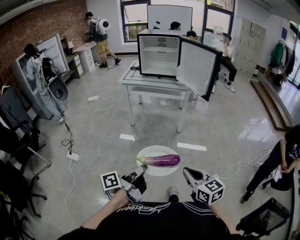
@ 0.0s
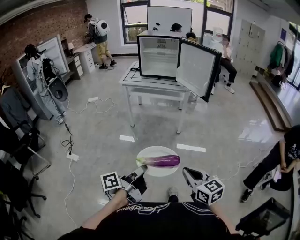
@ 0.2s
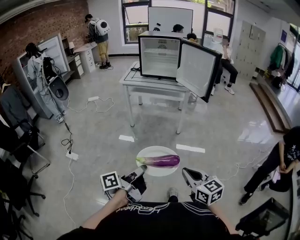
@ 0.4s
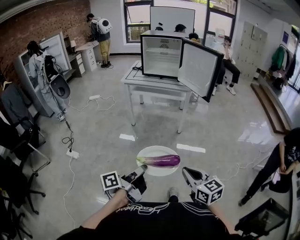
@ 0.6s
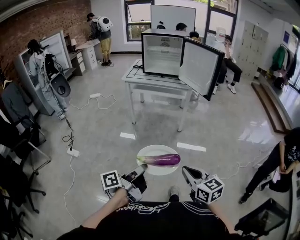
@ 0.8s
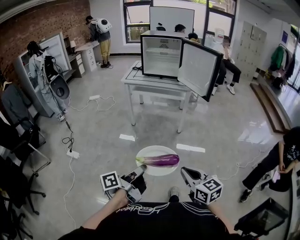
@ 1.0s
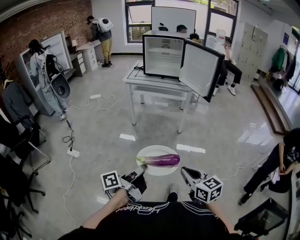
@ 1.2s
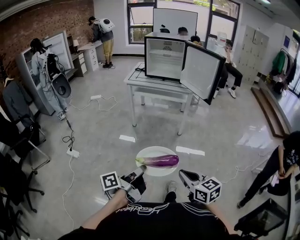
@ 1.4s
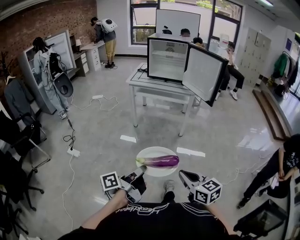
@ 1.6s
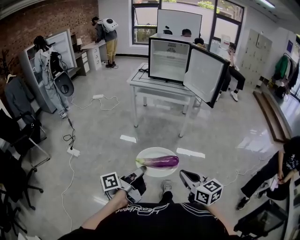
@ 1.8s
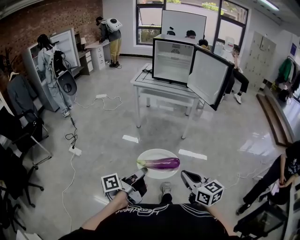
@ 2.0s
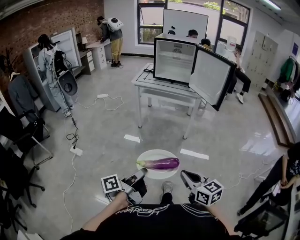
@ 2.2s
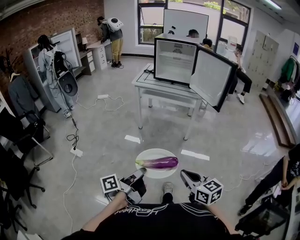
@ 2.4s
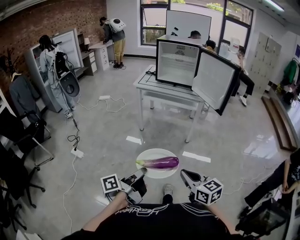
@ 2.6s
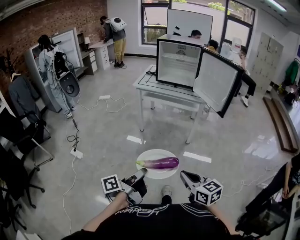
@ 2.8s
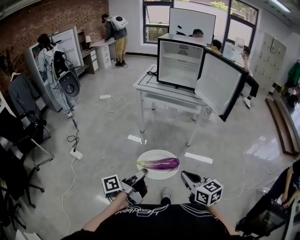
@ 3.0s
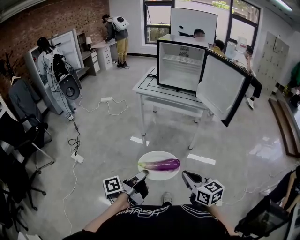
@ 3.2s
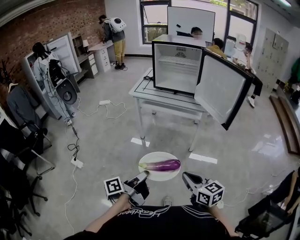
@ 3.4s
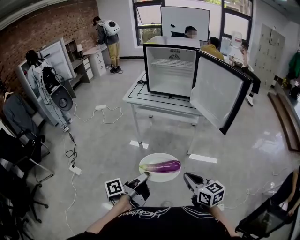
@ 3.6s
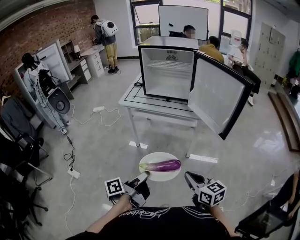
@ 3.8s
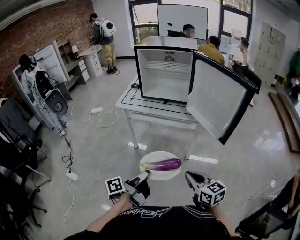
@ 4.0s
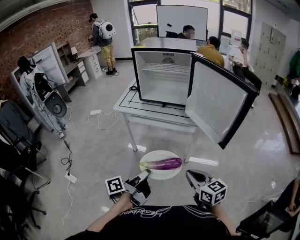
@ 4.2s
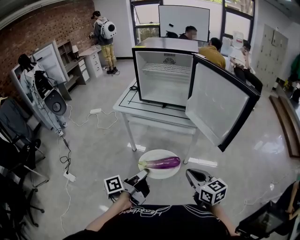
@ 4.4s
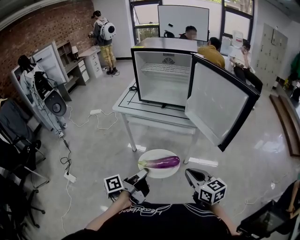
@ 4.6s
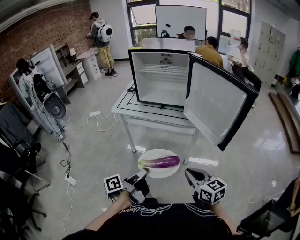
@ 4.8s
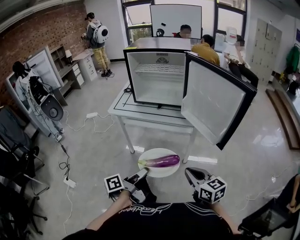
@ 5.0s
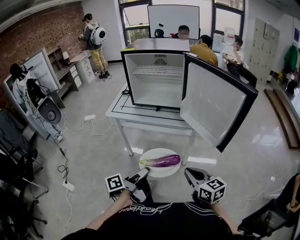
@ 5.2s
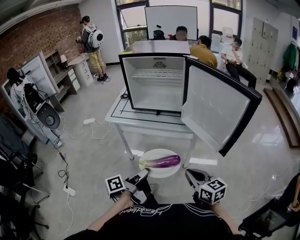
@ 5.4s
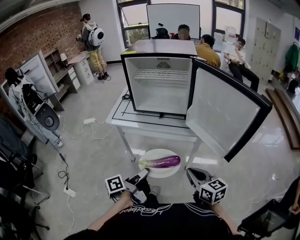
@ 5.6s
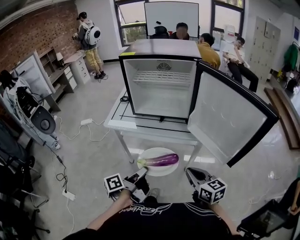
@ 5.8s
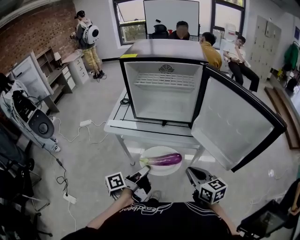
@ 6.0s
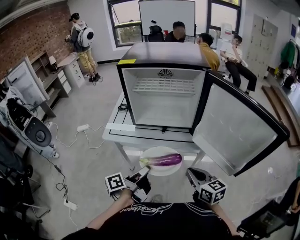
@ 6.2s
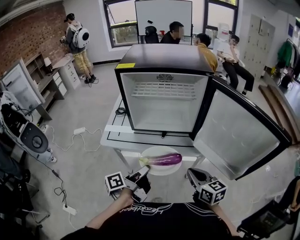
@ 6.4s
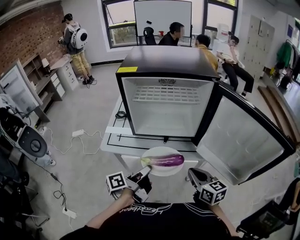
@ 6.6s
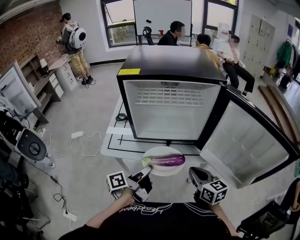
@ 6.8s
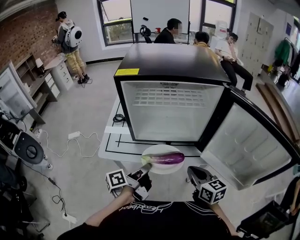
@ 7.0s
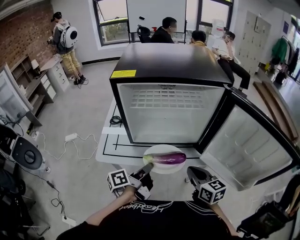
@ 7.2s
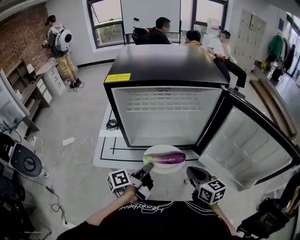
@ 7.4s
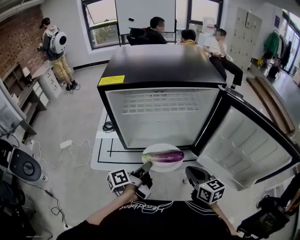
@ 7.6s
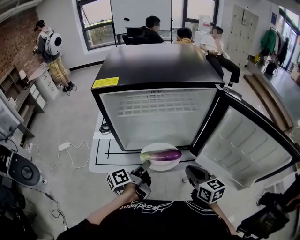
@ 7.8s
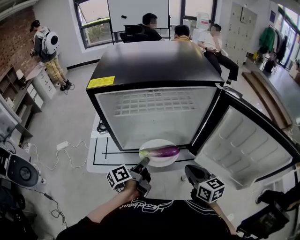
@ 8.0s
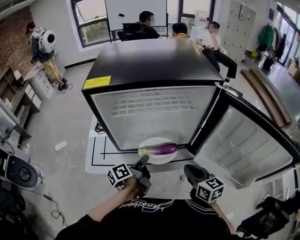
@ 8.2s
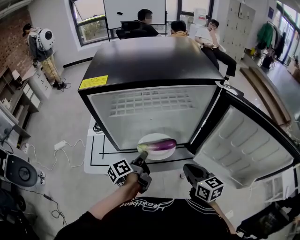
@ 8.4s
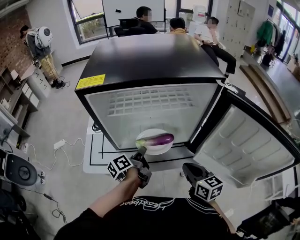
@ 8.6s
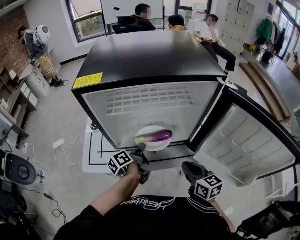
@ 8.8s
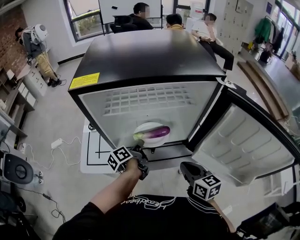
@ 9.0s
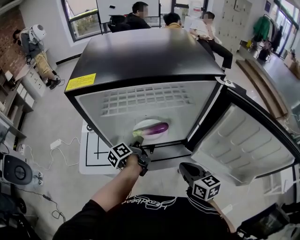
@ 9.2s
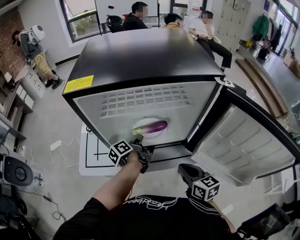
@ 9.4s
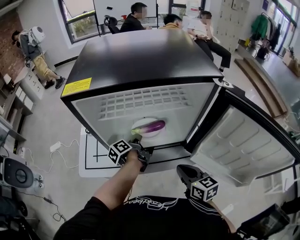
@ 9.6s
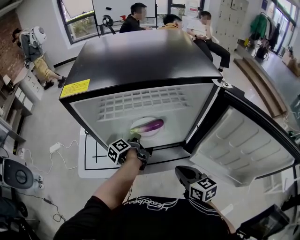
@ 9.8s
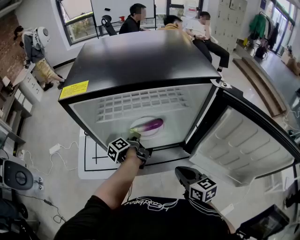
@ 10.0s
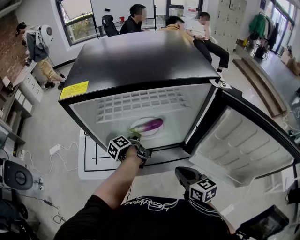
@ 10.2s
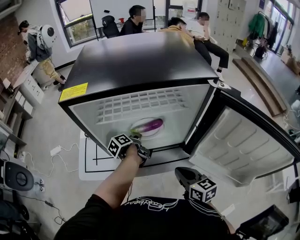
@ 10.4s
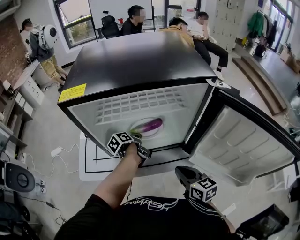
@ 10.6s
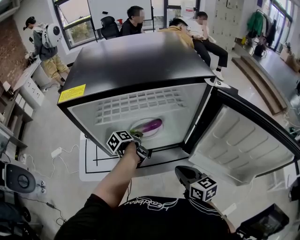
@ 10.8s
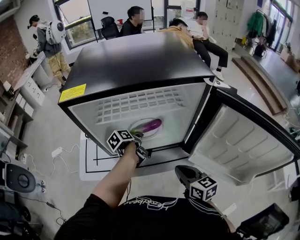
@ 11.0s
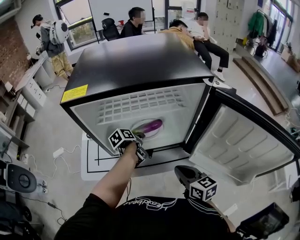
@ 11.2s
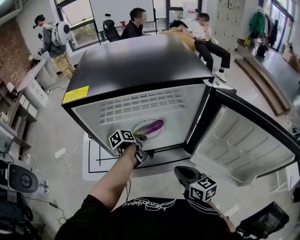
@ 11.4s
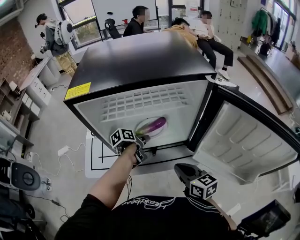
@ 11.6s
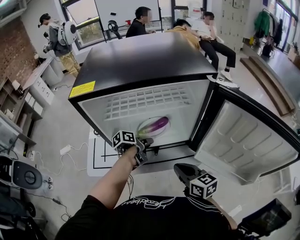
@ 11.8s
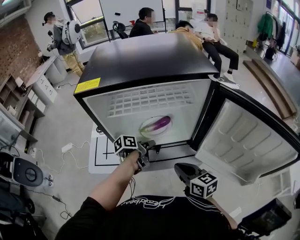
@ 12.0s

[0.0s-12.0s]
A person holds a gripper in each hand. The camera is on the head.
0.0s to 1.6s: The right gripper shifts by some 5 cm.
1.6s to 3.0s: The right gripper moves approximately 15 cm.
3.0s to 4.4s: The right gripper changes place by approximately 35 cm.
4.4s to 6.0s: The right gripper moves approximately 20 cm.
6.0s to 7.6s: The right gripper ends up some 20 cm from where it was.

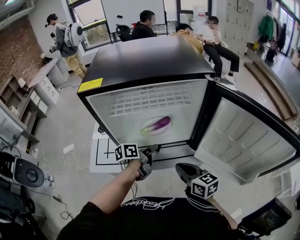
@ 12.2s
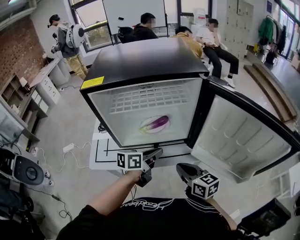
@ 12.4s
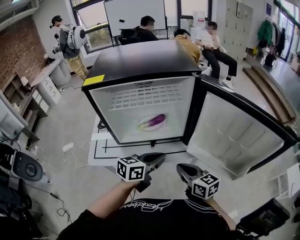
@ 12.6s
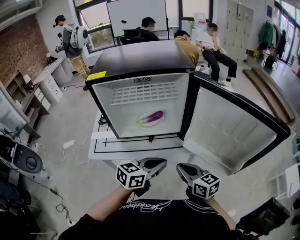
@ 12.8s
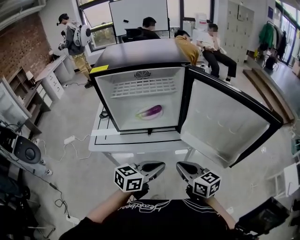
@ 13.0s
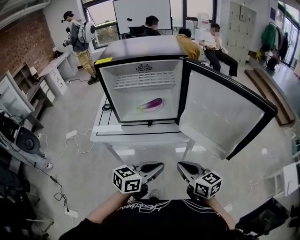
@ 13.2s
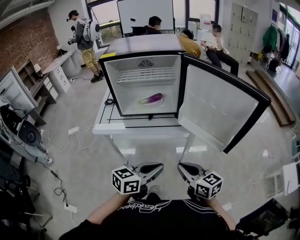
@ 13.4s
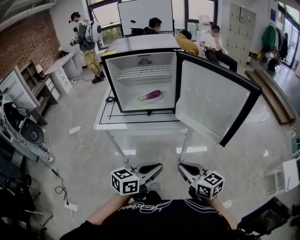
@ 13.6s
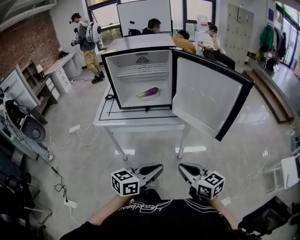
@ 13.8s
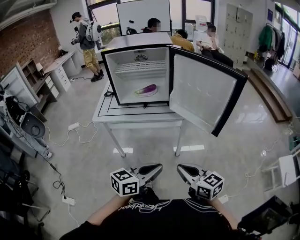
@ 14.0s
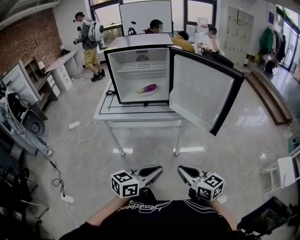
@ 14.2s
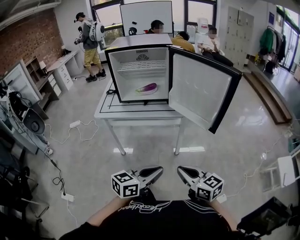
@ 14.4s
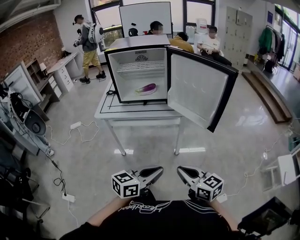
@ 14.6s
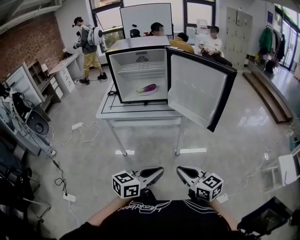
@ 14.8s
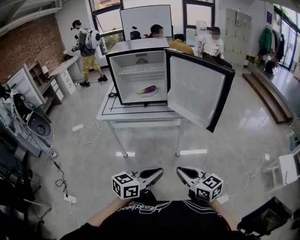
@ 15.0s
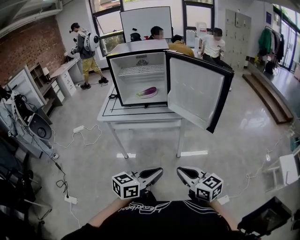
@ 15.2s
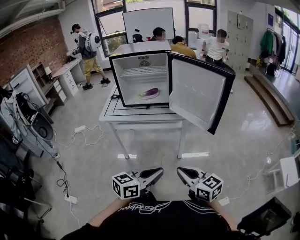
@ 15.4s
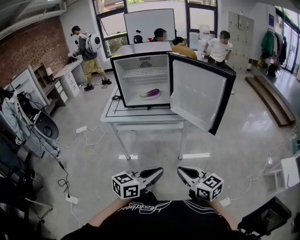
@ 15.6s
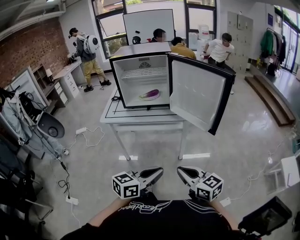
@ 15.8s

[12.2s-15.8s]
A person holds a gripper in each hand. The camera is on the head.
12.2s to 14.0s: The right gripper changes place by approximately 40 cm.
14.0s to 15.8s: The right gripper changes place by some 5 cm.

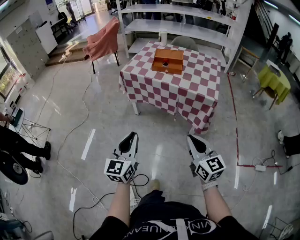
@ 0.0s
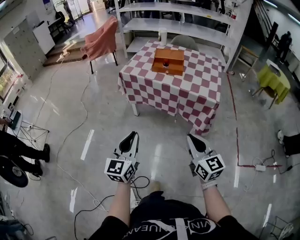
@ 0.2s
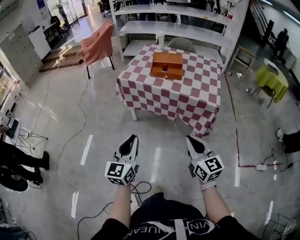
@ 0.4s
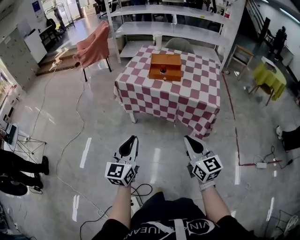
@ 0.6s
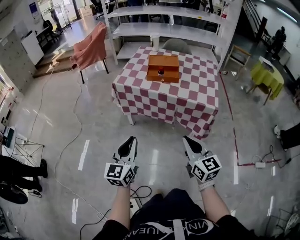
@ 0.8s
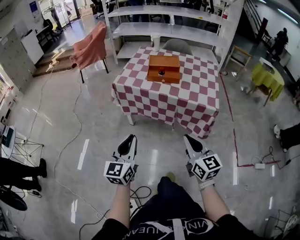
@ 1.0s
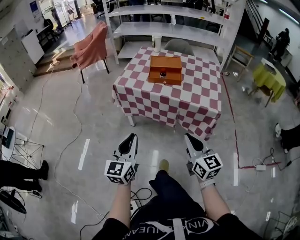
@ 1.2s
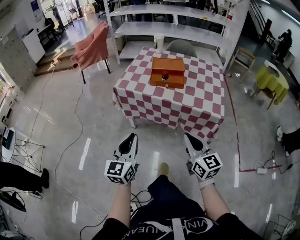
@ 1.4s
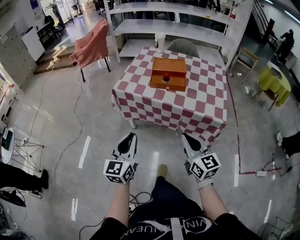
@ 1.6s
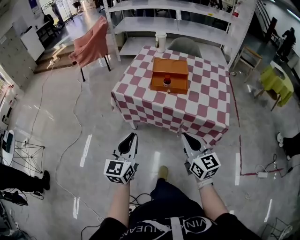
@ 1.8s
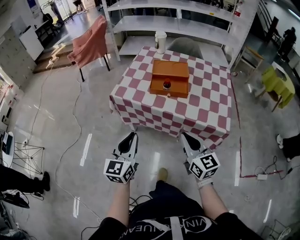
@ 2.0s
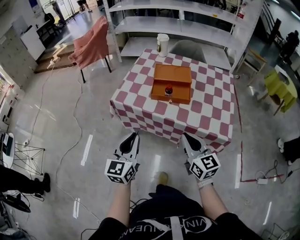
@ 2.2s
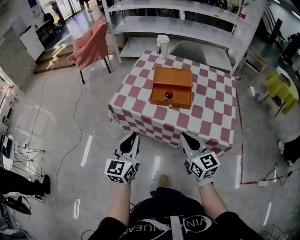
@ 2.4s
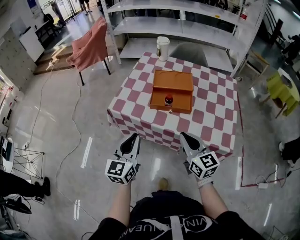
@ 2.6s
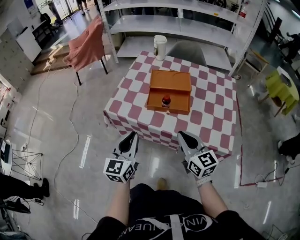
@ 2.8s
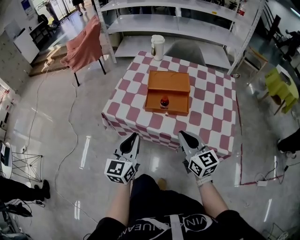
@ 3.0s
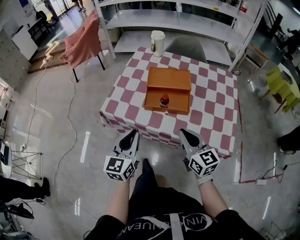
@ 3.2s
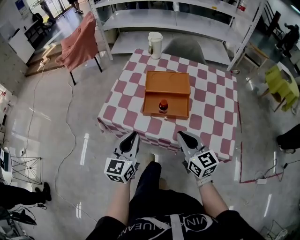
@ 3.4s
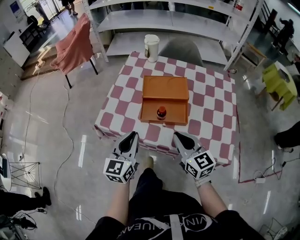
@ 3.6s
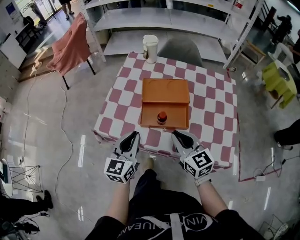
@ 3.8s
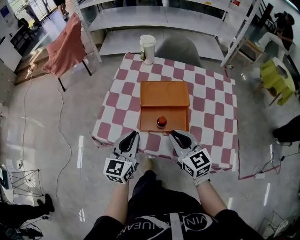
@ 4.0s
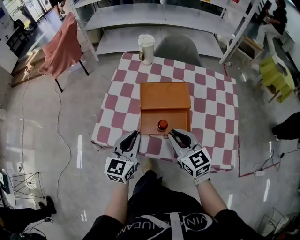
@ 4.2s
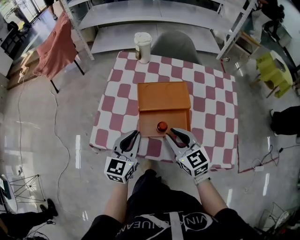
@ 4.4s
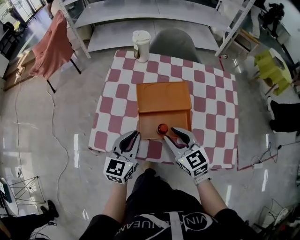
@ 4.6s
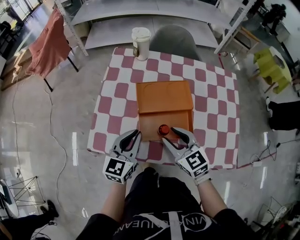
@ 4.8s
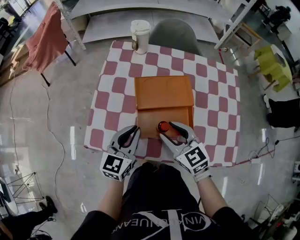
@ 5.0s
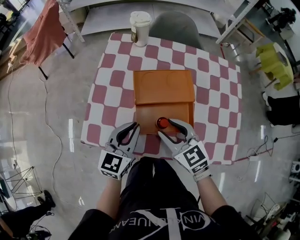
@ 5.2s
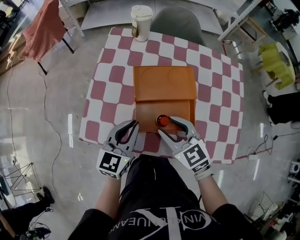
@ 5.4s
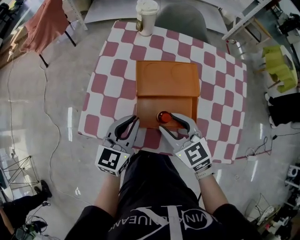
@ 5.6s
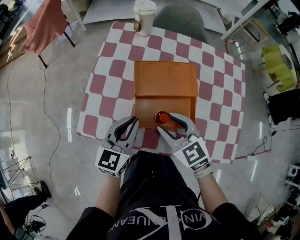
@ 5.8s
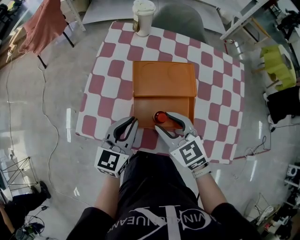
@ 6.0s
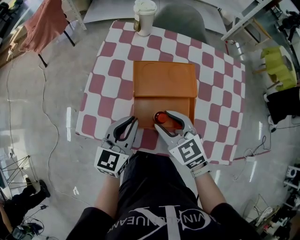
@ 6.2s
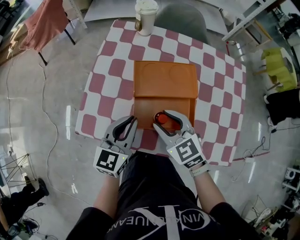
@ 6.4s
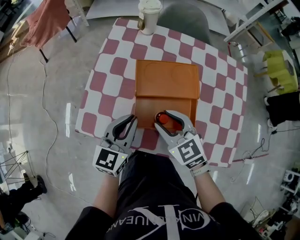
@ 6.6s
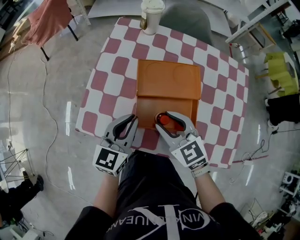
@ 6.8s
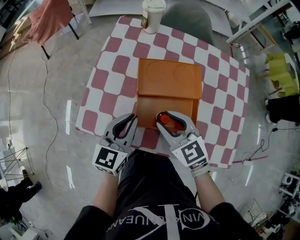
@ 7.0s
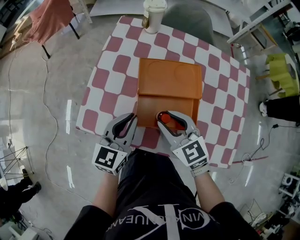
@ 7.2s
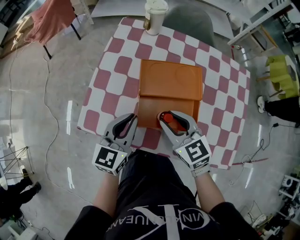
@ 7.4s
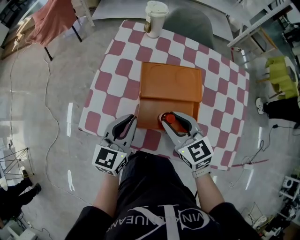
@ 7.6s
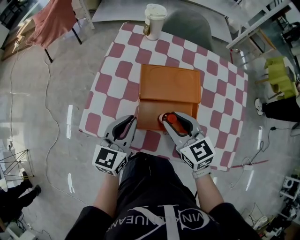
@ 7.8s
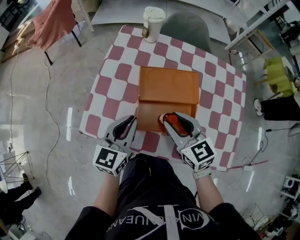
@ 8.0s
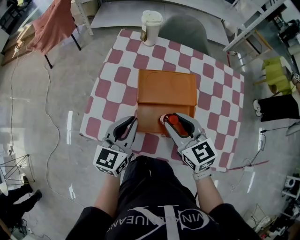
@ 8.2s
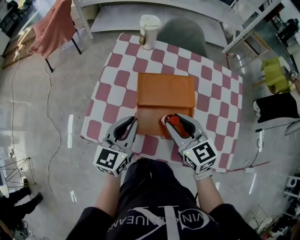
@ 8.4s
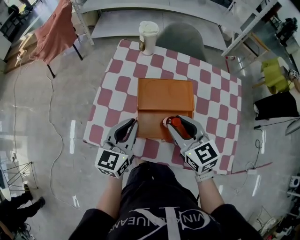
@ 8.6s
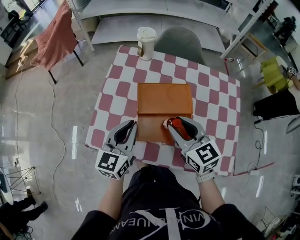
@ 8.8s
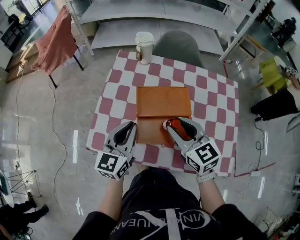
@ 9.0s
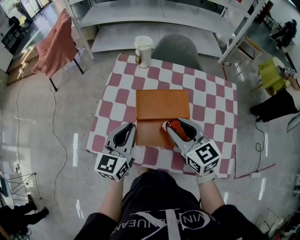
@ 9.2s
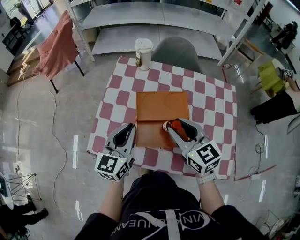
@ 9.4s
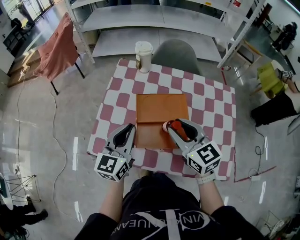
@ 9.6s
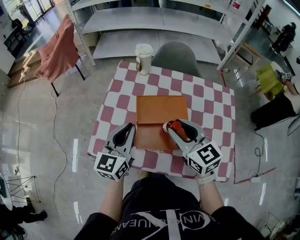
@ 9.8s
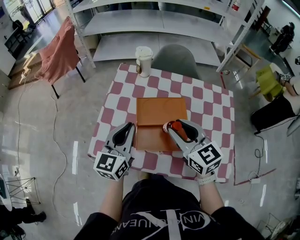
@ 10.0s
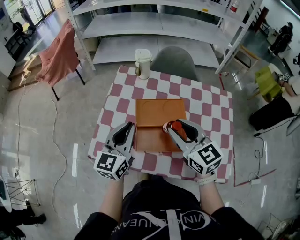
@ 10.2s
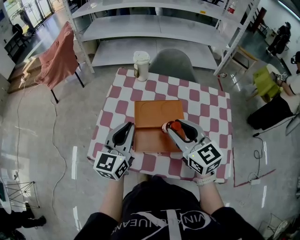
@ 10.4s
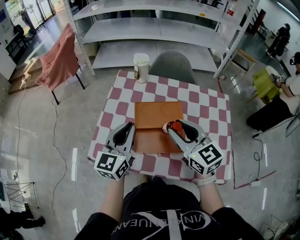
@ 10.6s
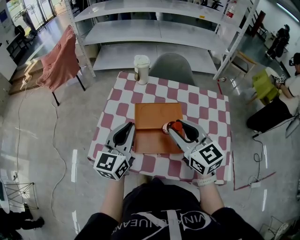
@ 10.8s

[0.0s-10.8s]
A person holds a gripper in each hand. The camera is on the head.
0.0s to 1.6s: The grippers both shift forward by some 25 cm.
1.6s to 3.0s: The two grippers go some 20 cm forward.
3.0s to 4.6s: The two grippers go approximately 20 cm forward. The right gripper opens its fingers.
4.6s to 7.8s: The grippers make only small movements.
7.8s to 9.2s: The grippers both shift upward by about 5 cm.
9.2s to 10.8s: The two grippers go roughly 5 cm upward.
